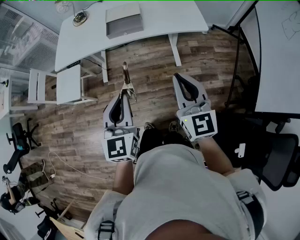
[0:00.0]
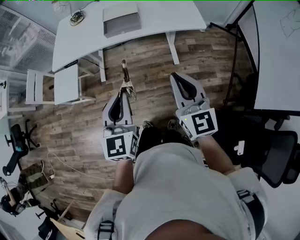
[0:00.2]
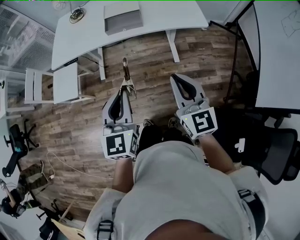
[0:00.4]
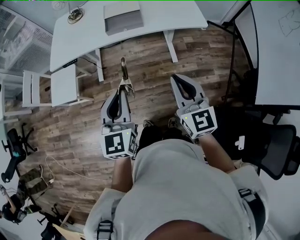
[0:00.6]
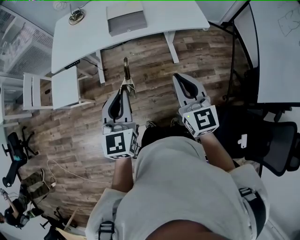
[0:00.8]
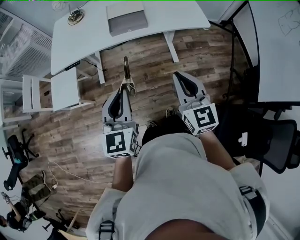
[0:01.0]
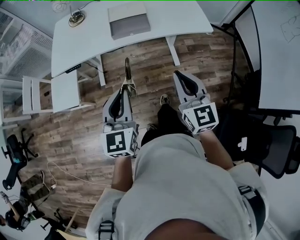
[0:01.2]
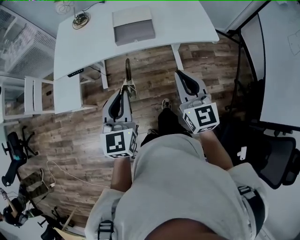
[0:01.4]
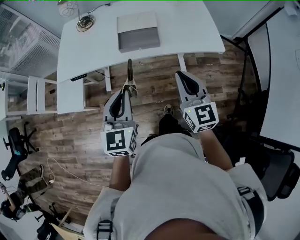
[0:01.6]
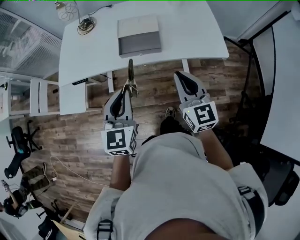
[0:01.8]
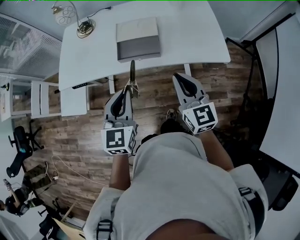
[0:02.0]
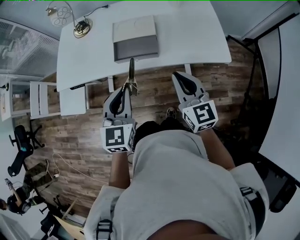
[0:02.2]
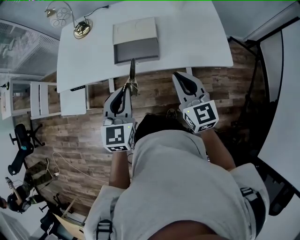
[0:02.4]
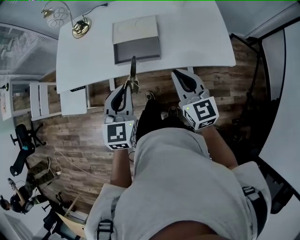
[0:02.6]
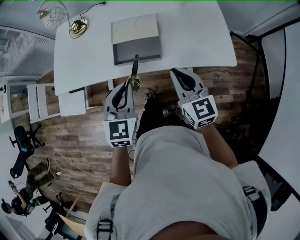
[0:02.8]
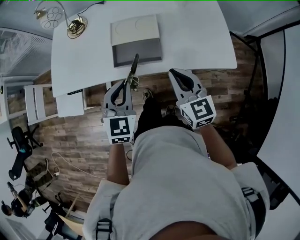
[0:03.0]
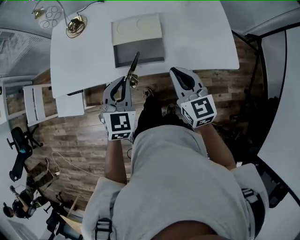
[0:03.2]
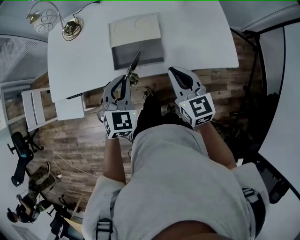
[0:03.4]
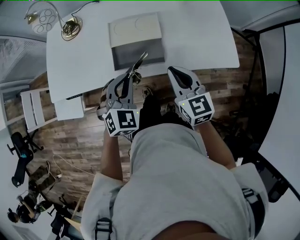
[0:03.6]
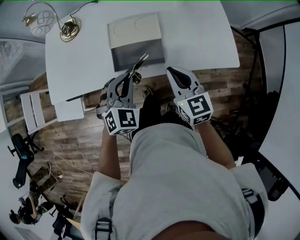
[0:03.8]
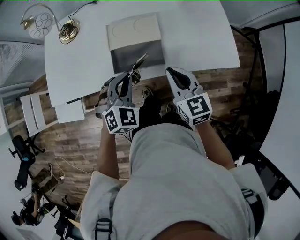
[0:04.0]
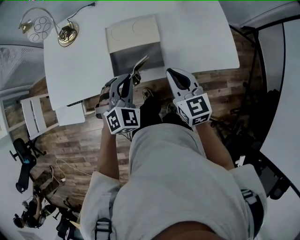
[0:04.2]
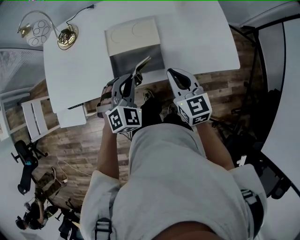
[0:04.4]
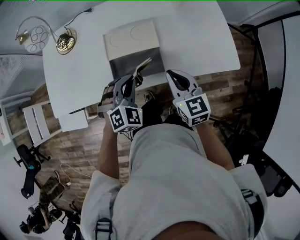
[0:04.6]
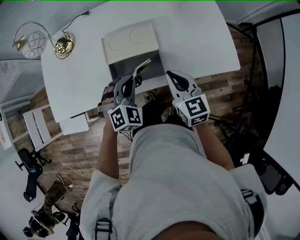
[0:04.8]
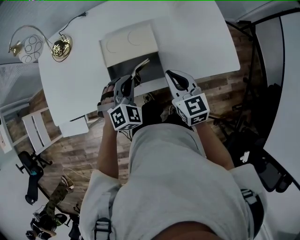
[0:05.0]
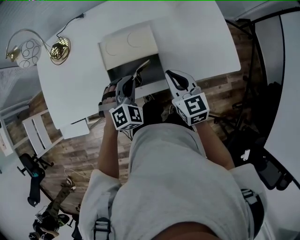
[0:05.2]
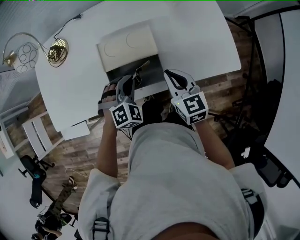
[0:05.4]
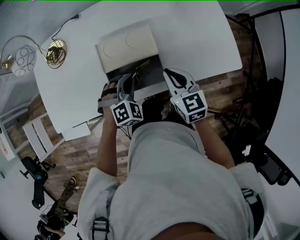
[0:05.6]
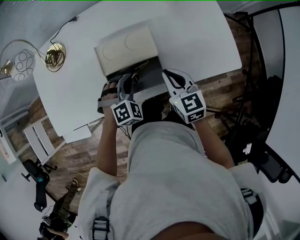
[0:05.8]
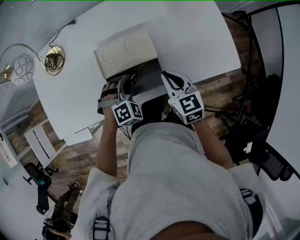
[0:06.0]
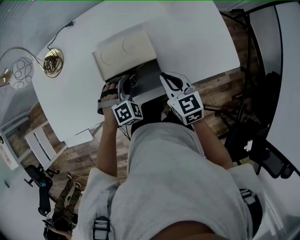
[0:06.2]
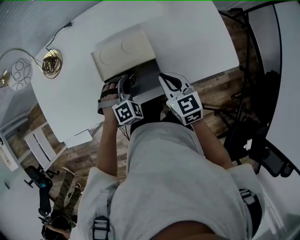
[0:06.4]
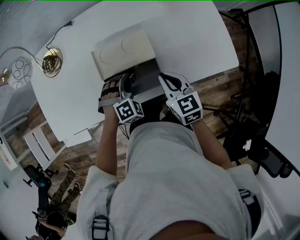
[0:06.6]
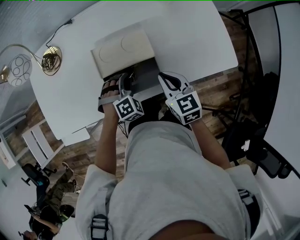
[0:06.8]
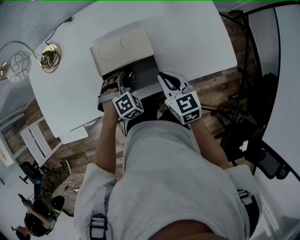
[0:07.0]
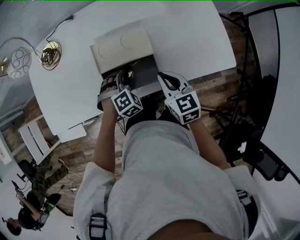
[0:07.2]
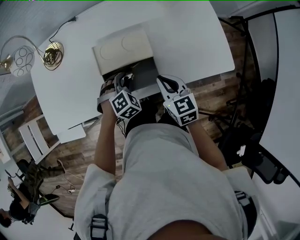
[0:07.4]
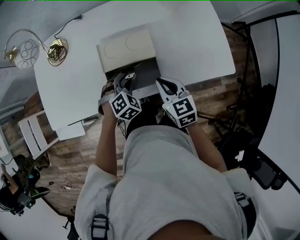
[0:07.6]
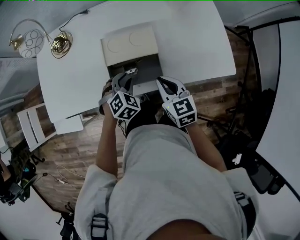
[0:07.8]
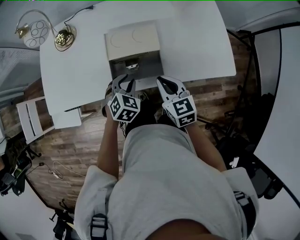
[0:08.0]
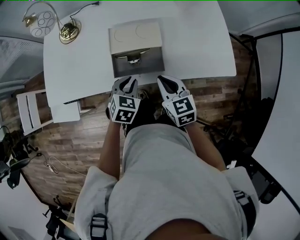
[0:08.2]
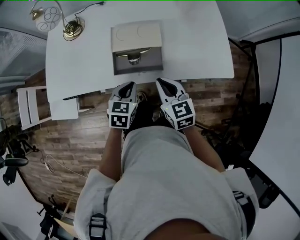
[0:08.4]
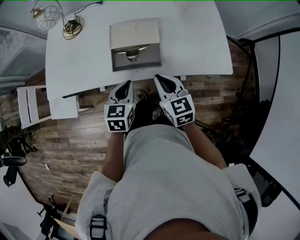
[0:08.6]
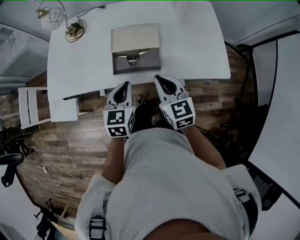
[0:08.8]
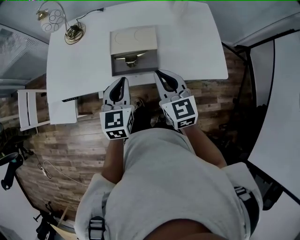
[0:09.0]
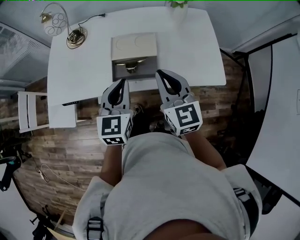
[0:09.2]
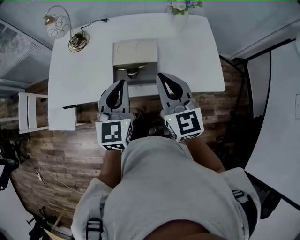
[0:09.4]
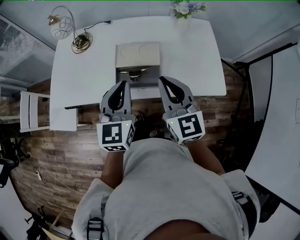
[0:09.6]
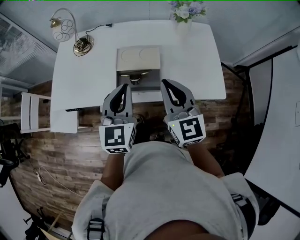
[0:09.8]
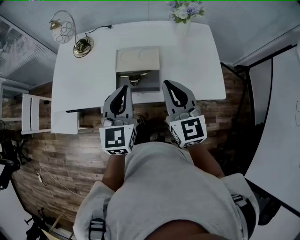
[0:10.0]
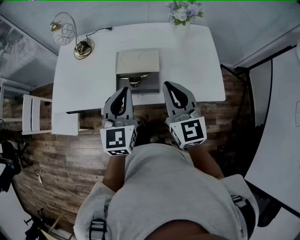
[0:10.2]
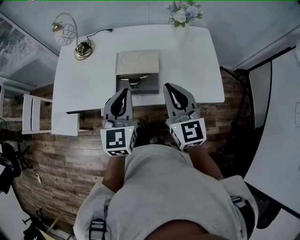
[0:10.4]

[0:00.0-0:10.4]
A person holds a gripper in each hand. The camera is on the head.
0:00.0 to 0:01.4: Both grippers move forward and to the left, roughly 15 cm.
0:01.4 to 0:03.0: The two grippers go roughly 25 cm forward. The left gripper swivels about 20 degrees.
0:03.0 to 0:04.4: The right gripper travels forward by about 5 cm; the left gripper heads forward and downward, covering approximately 10 cm, and changes its angle by approximately 40 degrees.
0:04.4 to 0:06.0: The right gripper moves forward and downward, about 10 cm; the left gripper moves downward and forward, some 15 cm, and changes its angle by some 20 degrees.
0:06.0 to 0:07.4: The left gripper opens its fingers.
0:07.4 to 0:09.0: The left gripper is displaced upward and backward by about 25 cm, rolls counterclockwise, seen from behind, by roughly 60 degrees, and closes its fingers; the right gripper is displaced upward and backward by about 15 cm.
0:09.0 to 0:10.4: The grippers both shift upward by approximately 10 cm.

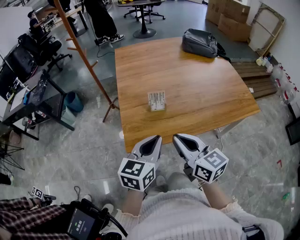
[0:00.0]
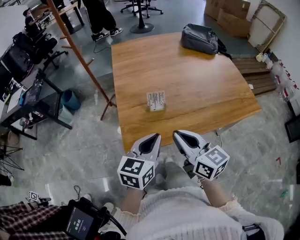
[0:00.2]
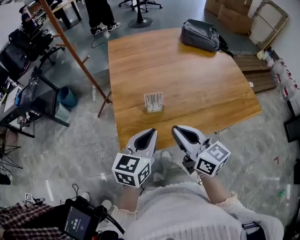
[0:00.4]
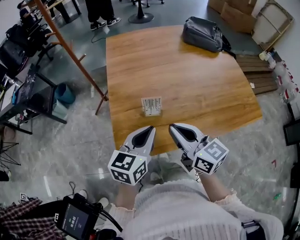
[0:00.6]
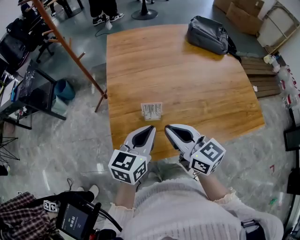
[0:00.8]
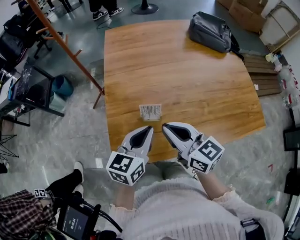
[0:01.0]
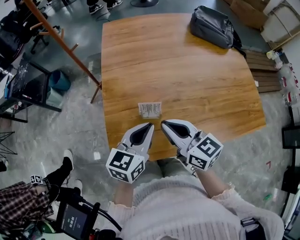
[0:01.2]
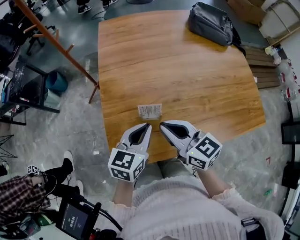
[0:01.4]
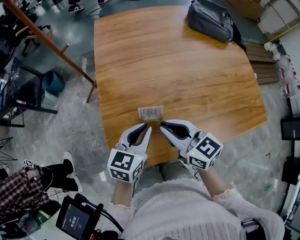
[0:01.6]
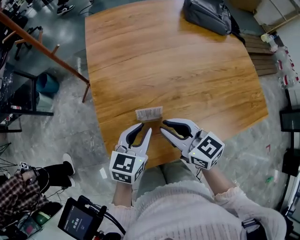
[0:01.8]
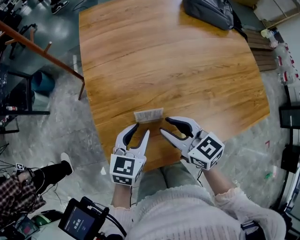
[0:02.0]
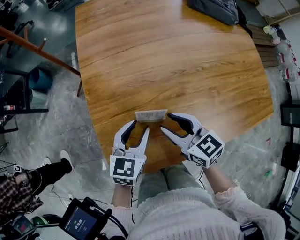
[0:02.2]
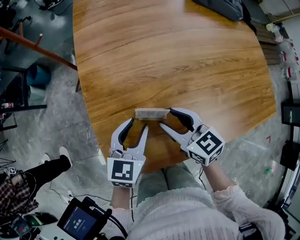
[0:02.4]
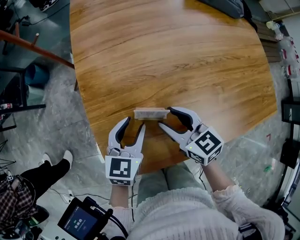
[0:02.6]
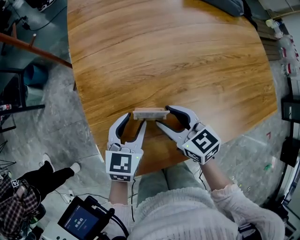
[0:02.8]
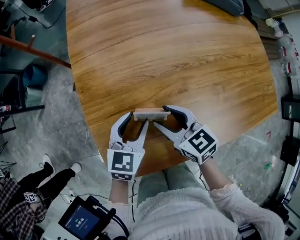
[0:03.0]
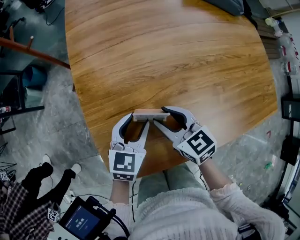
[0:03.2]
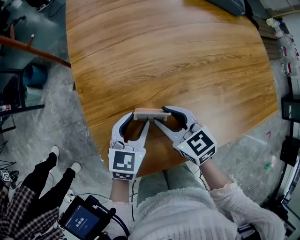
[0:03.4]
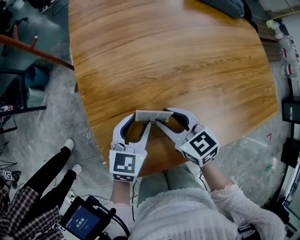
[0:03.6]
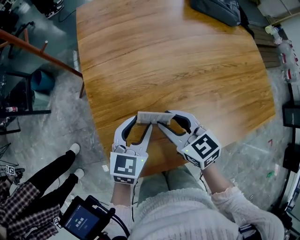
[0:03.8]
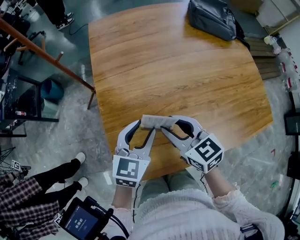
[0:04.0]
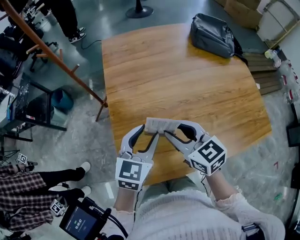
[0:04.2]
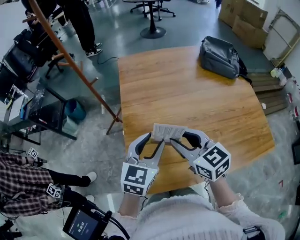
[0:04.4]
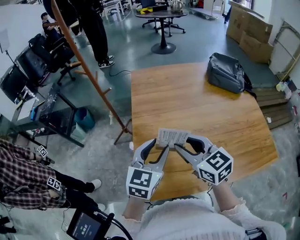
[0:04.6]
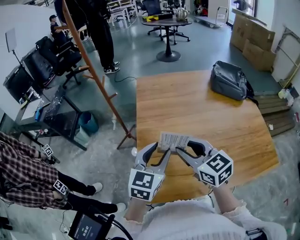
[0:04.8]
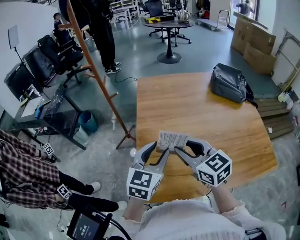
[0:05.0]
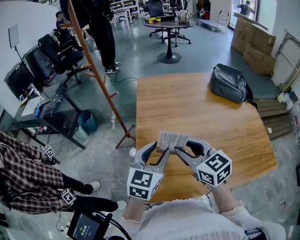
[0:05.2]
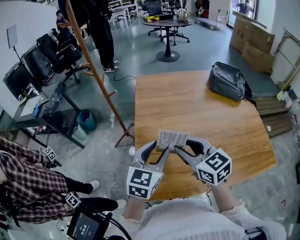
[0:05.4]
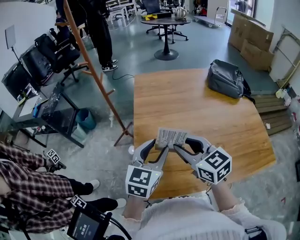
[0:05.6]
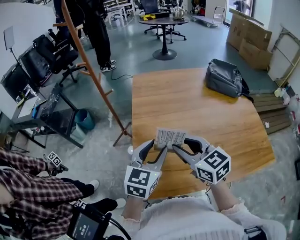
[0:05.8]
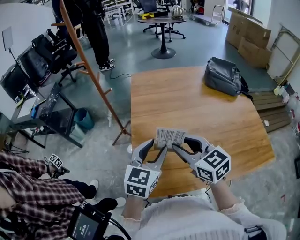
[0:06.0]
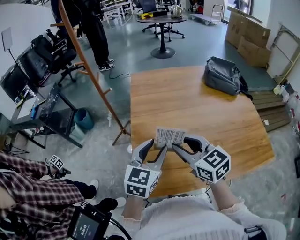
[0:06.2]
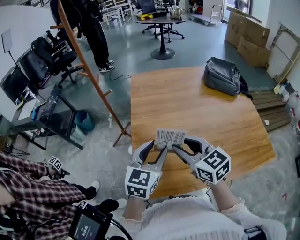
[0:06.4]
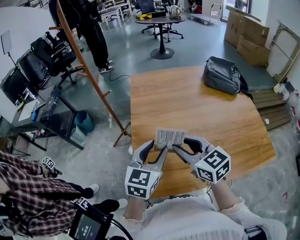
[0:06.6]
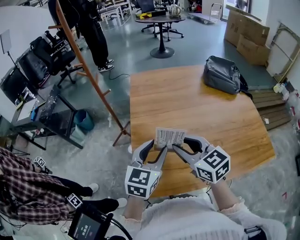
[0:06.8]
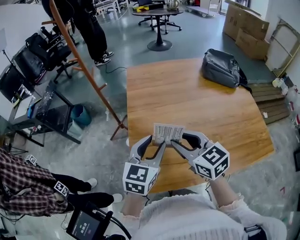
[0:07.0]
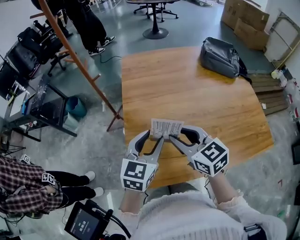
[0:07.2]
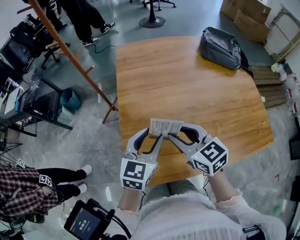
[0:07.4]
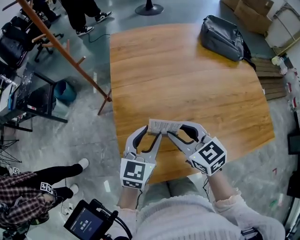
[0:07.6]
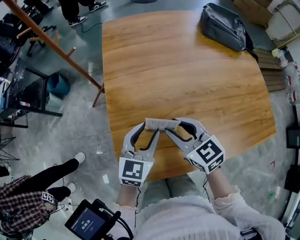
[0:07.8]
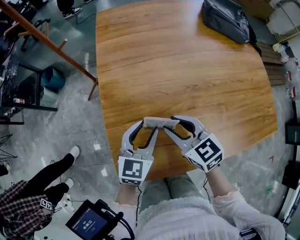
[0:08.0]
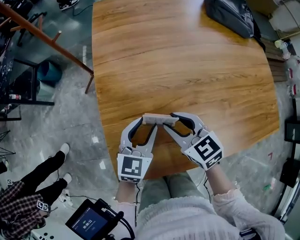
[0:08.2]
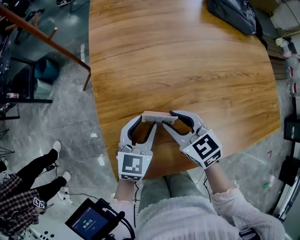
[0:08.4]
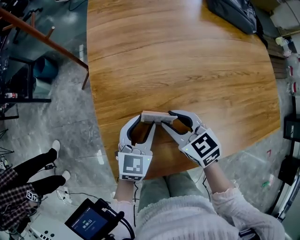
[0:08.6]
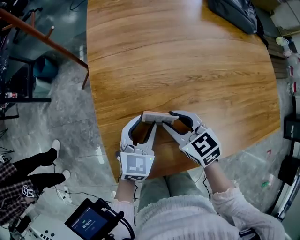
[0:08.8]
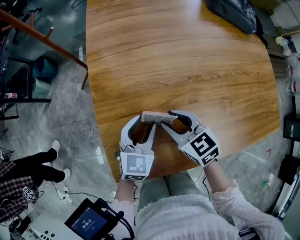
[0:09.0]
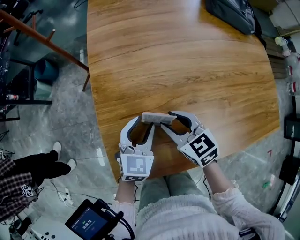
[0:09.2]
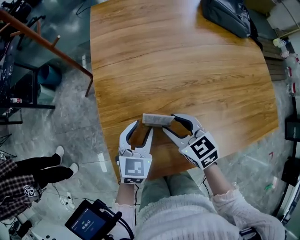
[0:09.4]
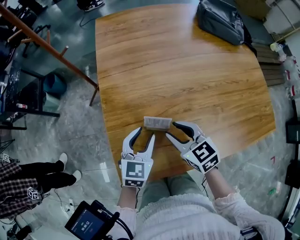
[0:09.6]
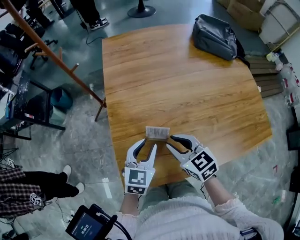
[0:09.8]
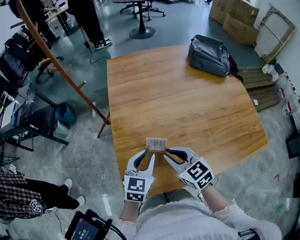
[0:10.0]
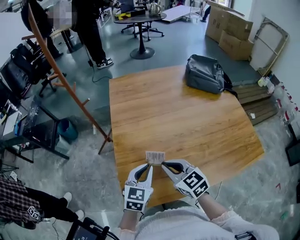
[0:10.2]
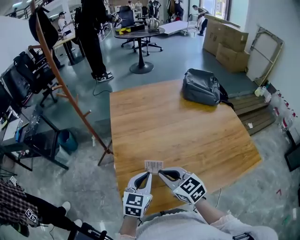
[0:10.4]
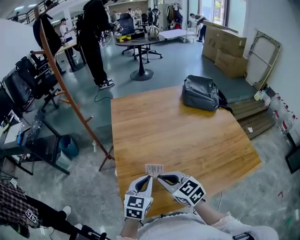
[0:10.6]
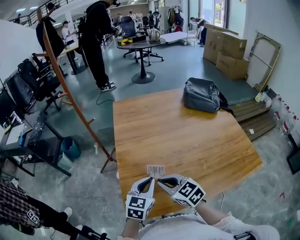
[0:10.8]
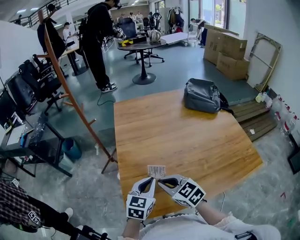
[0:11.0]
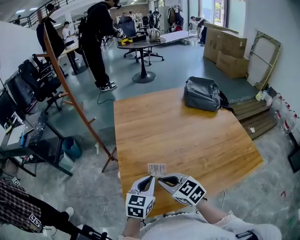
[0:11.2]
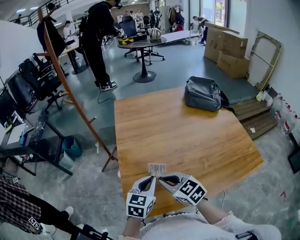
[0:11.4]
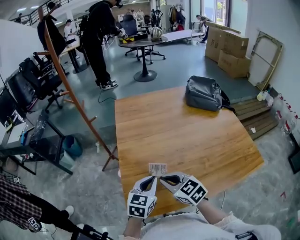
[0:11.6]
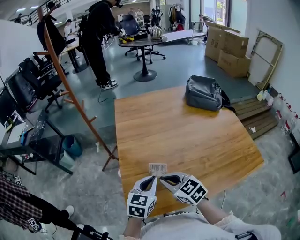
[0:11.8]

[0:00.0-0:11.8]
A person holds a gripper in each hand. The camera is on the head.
0:00.0 to 0:01.4: Both grippers travel together forward, about 20 cm.
0:01.4 to 0:03.0: Both grippers move downward and forward, roughly 15 cm. The right gripper opens its fingers. The left gripper opens its fingers.
0:03.0 to 0:04.4: The two grippers go roughly 20 cm upward.
0:04.4 to 0:06.0: The grippers move only a little.
0:06.0 to 0:07.4: The grippers both shift downward by approximately 5 cm.
0:07.4 to 0:08.8: Both grippers travel together downward, some 20 cm.
0:08.8 to 0:10.4: Both grippers move upward, some 15 cm. The right gripper closes its fingers. The left gripper closes up.
0:10.4 to 0:11.8: The grippers stay close to where they were, moving slightly.

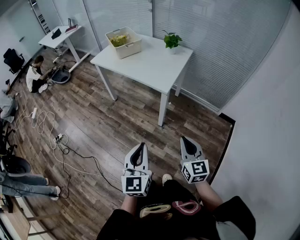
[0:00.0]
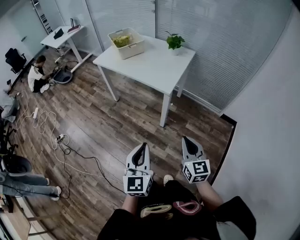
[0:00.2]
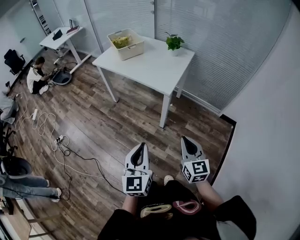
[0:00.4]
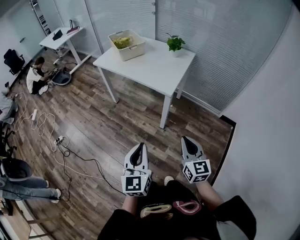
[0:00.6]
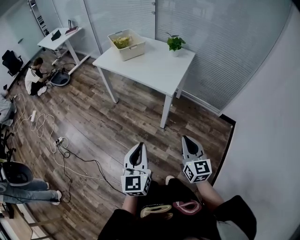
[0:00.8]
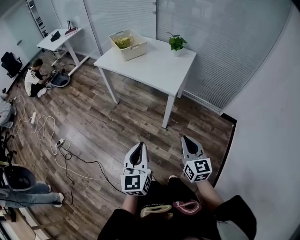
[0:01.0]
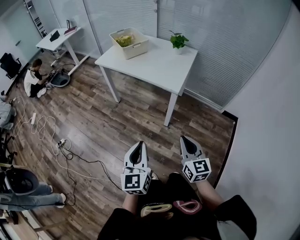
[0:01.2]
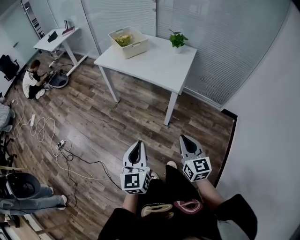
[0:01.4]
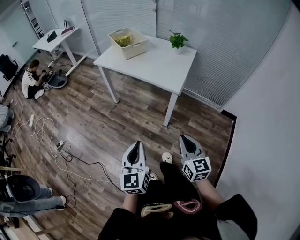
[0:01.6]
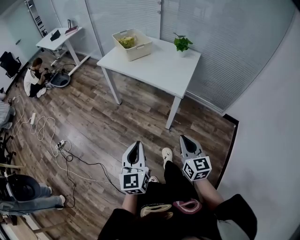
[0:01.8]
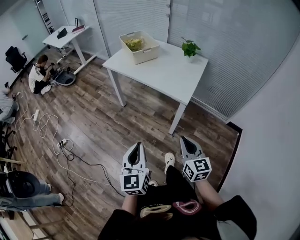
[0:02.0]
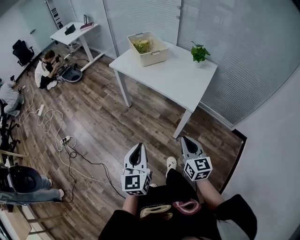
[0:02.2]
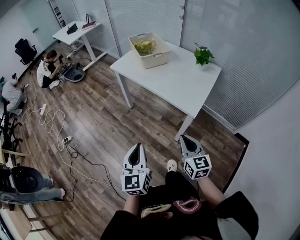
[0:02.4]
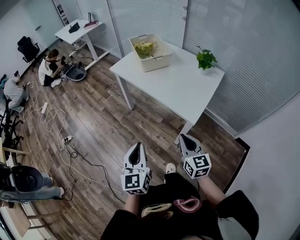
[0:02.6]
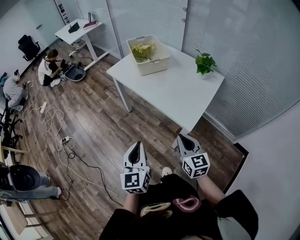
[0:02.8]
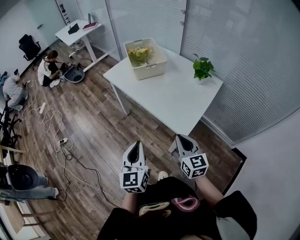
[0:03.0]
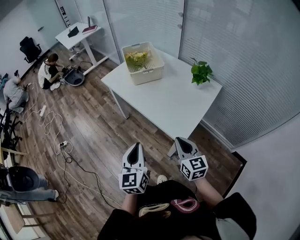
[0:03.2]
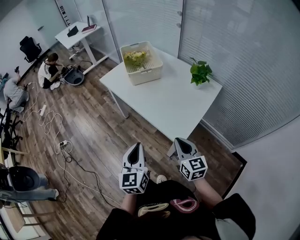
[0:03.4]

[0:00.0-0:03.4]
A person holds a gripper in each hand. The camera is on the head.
0:00.0 to 0:01.6: Both grippers travel together to the left, about 10 cm.
0:01.6 to 0:03.4: The left gripper heads forward and to the right, covering roughly 30 cm. Meanwhile the right gripper goes approximately 35 cm forward.
